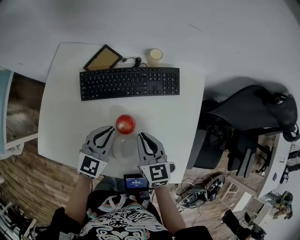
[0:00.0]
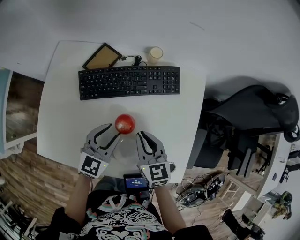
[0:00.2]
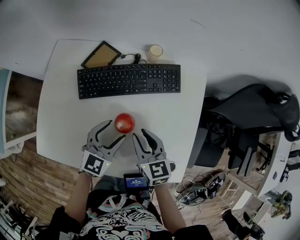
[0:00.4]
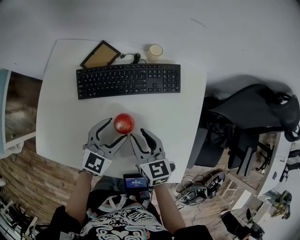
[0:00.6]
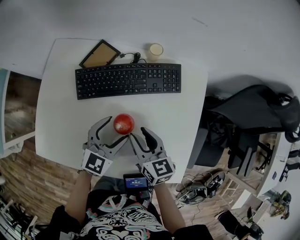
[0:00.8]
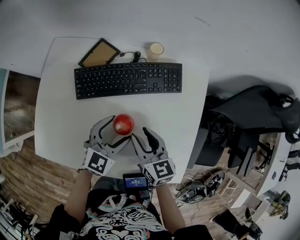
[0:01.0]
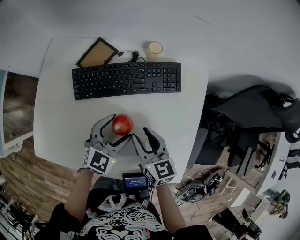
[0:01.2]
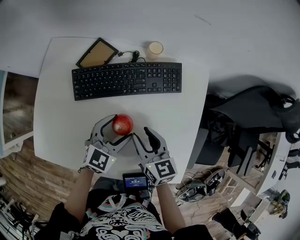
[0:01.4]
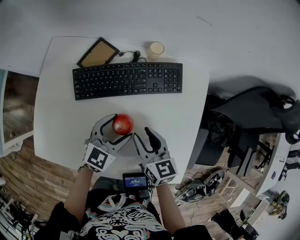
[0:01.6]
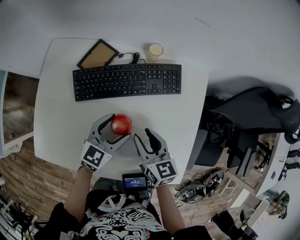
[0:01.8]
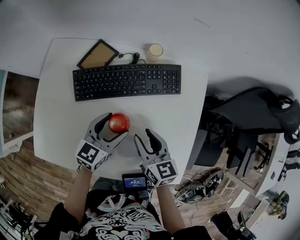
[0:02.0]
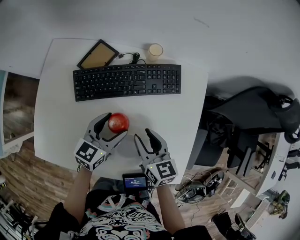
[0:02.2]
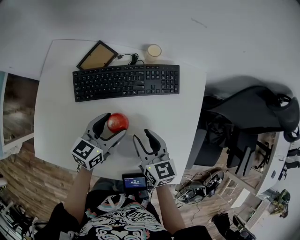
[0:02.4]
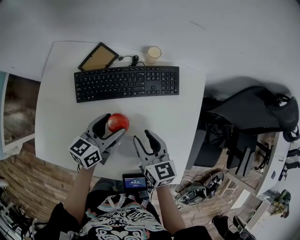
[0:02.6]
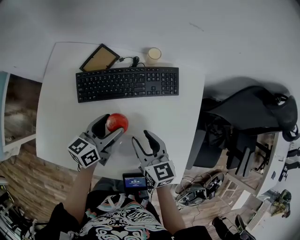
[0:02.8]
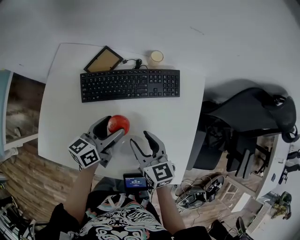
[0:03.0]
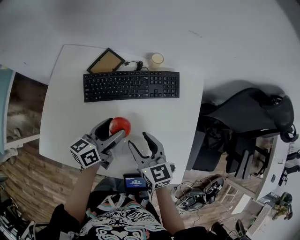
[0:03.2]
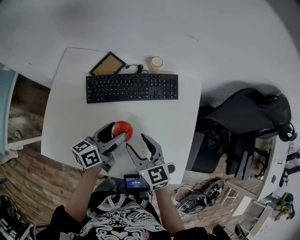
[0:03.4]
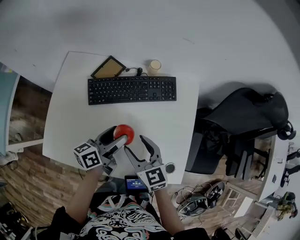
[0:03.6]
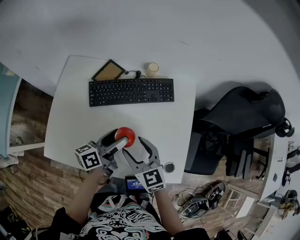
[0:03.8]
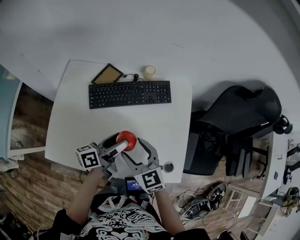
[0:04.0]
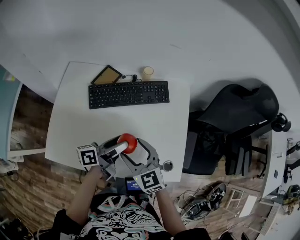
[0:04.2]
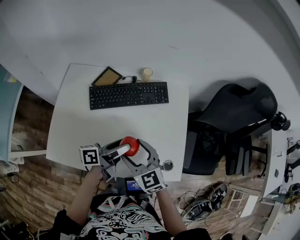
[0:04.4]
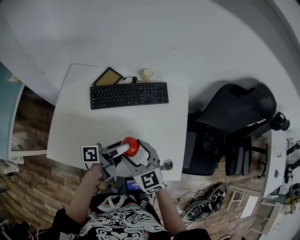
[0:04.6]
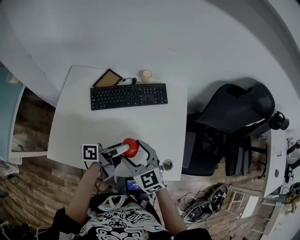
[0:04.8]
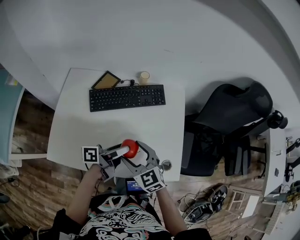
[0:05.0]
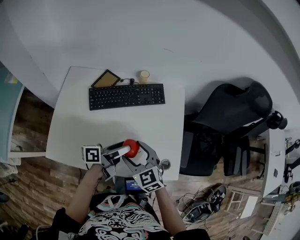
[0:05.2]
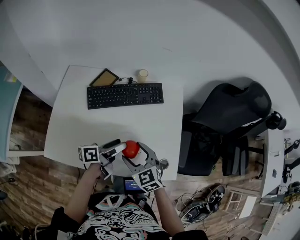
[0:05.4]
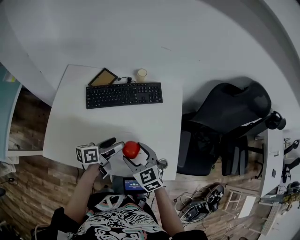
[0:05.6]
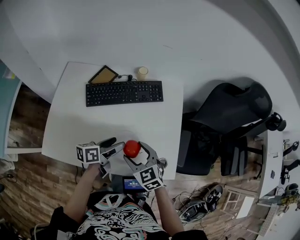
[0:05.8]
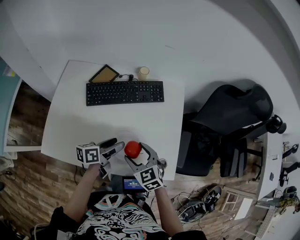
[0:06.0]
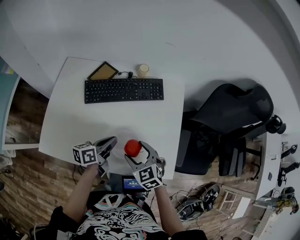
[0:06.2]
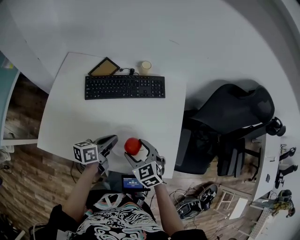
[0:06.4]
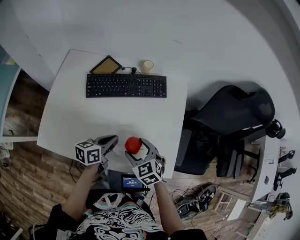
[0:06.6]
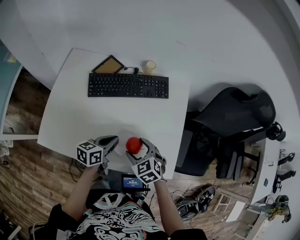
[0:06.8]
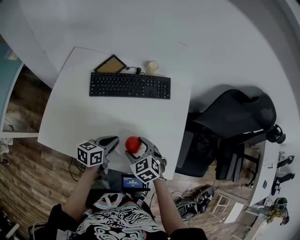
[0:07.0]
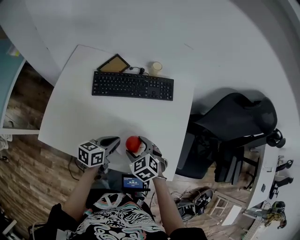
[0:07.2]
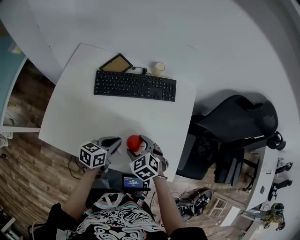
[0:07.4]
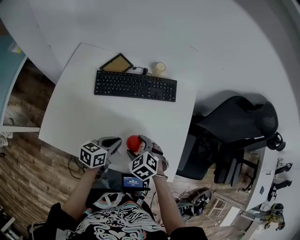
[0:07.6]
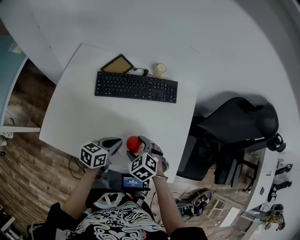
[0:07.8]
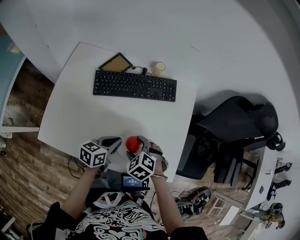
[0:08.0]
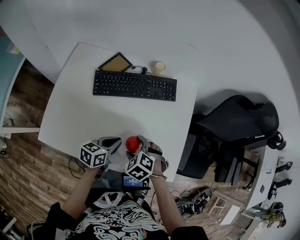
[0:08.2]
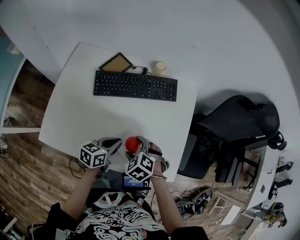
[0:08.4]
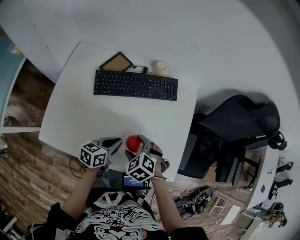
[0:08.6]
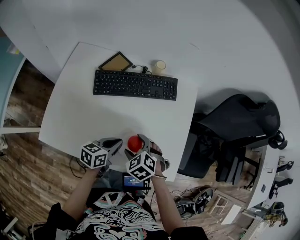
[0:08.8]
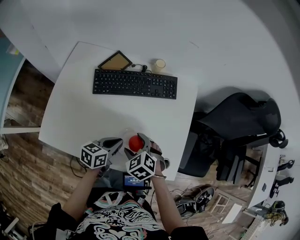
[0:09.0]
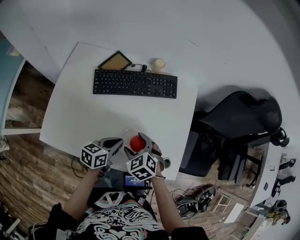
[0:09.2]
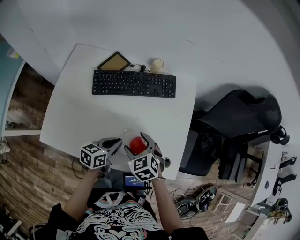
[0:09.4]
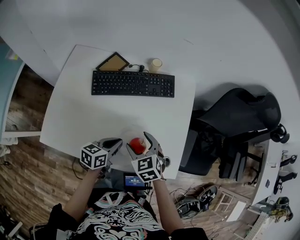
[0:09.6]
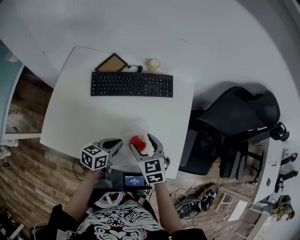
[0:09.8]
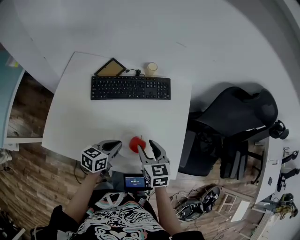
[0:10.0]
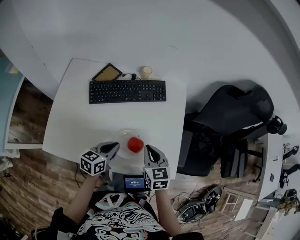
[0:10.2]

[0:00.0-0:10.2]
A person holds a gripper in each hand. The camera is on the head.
0:00.0 to 0:01.4: The left gripper is displaced to the right by roughly 5 cm, and opens up; the right gripper opens.
0:01.4 to 0:03.0: The left gripper travels to the left by approximately 5 cm, and rotates around the line of its fingers by about 40 degrees, counterclockwise from behind.
0:03.0 to 0:04.4: The grippers both shift backward and upward by about 10 cm. The right gripper swivels roughly 20 degrees, while the left gripper turns by some 30 degrees.
0:04.4 to 0:05.8: The right gripper shifts by some 5 cm; the left gripper heads downward, covering approximately 5 cm, and swivels some 20 degrees.
0:05.8 to 0:07.2: The left gripper closes its fingers. The right gripper shifts roughly 5 cm downward, and rotates some 20 degrees.
0:07.2 to 0:08.8: The grippers stay close to where they were, moving slightly.
0:08.8 to 0:10.2: The right gripper goes some 10 cm to the right and upward, swivels some 50 degrees, and closes up.

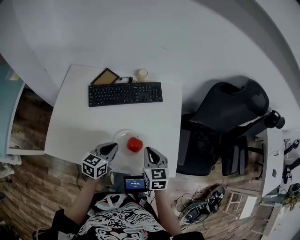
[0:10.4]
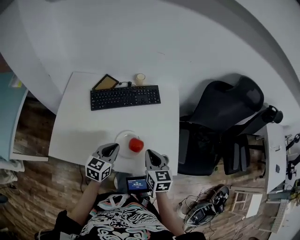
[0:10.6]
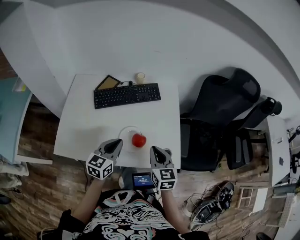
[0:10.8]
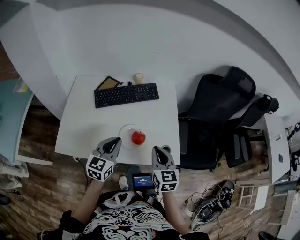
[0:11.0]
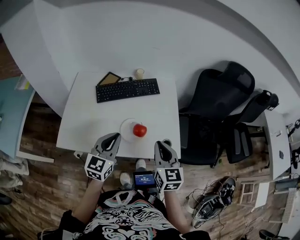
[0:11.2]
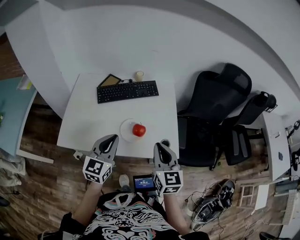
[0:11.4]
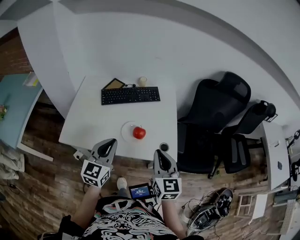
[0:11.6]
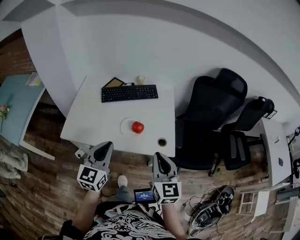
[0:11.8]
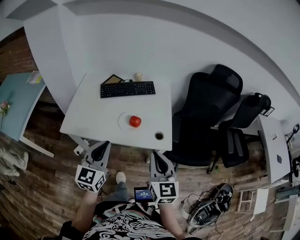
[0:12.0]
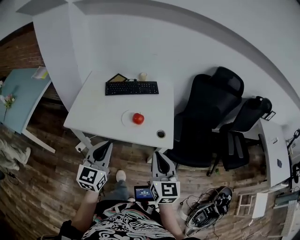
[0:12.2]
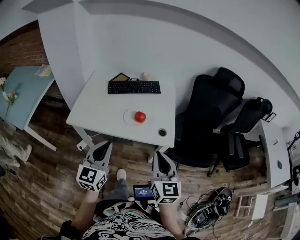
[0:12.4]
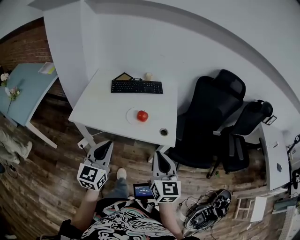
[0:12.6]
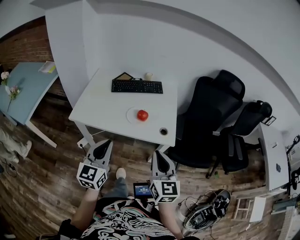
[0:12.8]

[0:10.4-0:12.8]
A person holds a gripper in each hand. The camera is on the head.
0:10.4 to 0:11.6: The left gripper moves upward and backward, some 25 cm, and changes its angle by some 30 degrees, while the right gripper travels backward and upward by about 25 cm, and turns by roughly 20 degrees.
0:11.6 to 0:12.8: Both grippers travel together backward, some 20 cm.

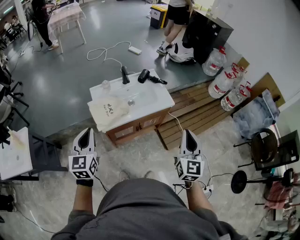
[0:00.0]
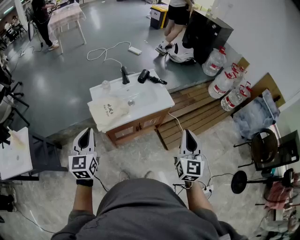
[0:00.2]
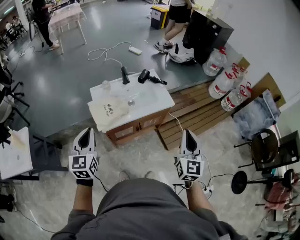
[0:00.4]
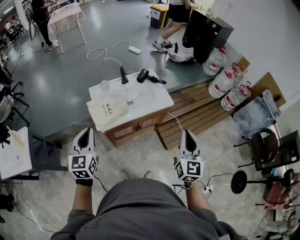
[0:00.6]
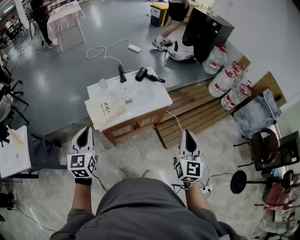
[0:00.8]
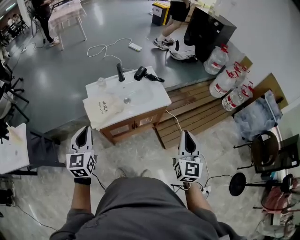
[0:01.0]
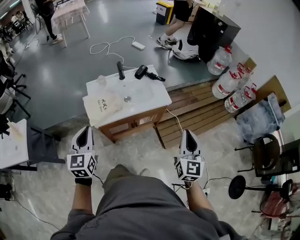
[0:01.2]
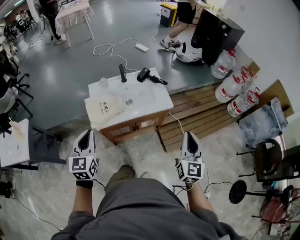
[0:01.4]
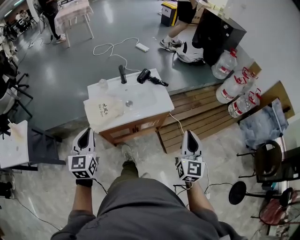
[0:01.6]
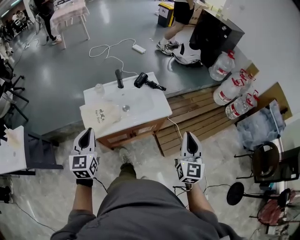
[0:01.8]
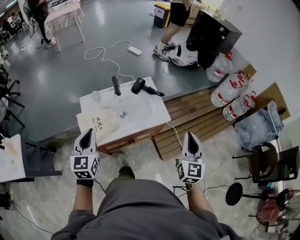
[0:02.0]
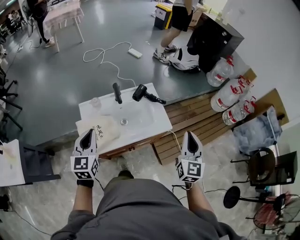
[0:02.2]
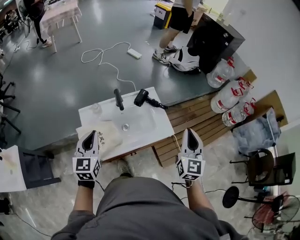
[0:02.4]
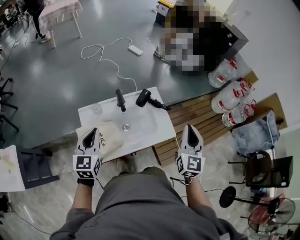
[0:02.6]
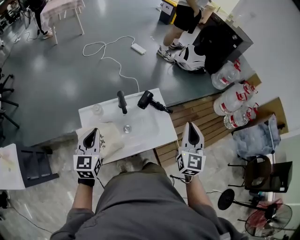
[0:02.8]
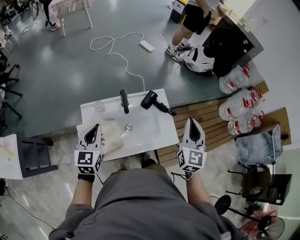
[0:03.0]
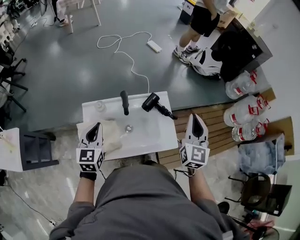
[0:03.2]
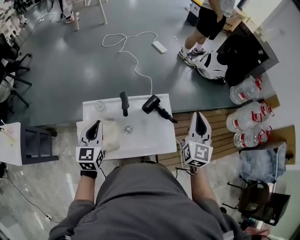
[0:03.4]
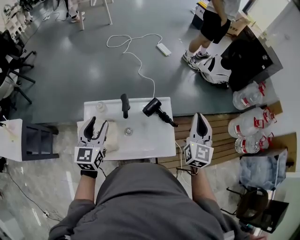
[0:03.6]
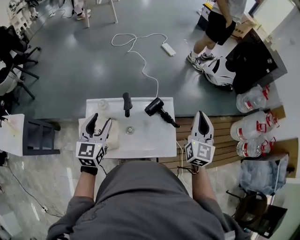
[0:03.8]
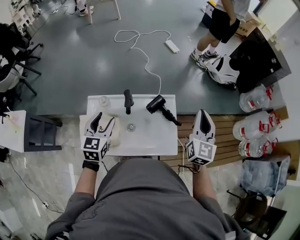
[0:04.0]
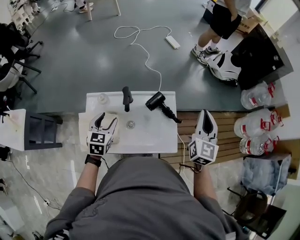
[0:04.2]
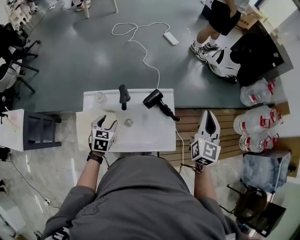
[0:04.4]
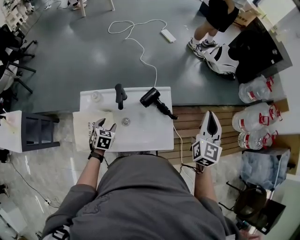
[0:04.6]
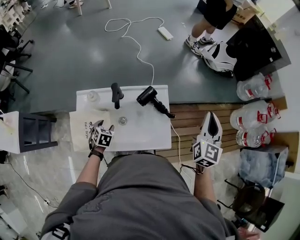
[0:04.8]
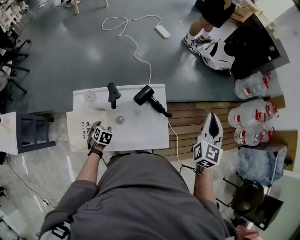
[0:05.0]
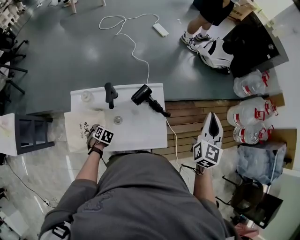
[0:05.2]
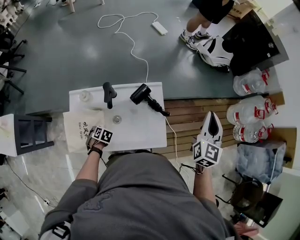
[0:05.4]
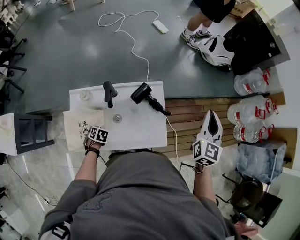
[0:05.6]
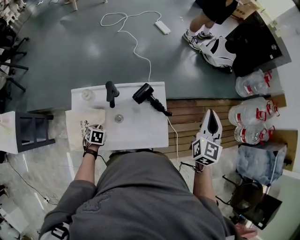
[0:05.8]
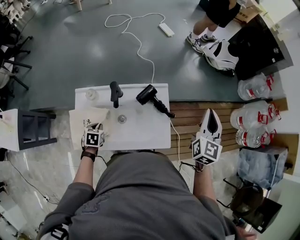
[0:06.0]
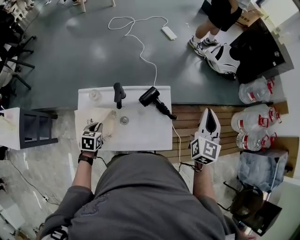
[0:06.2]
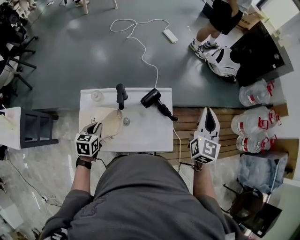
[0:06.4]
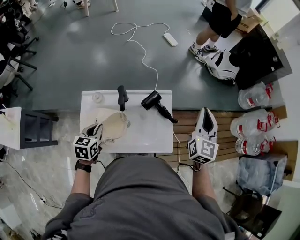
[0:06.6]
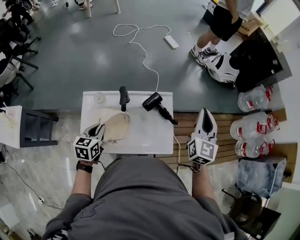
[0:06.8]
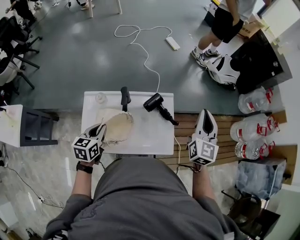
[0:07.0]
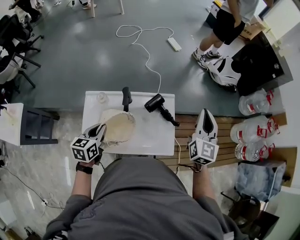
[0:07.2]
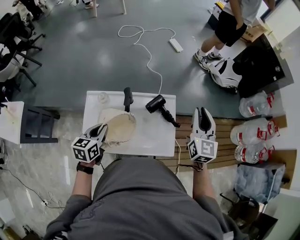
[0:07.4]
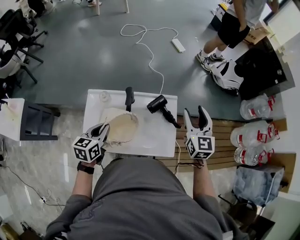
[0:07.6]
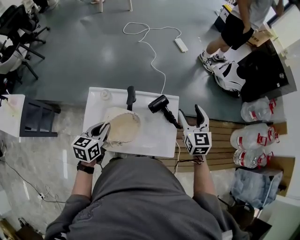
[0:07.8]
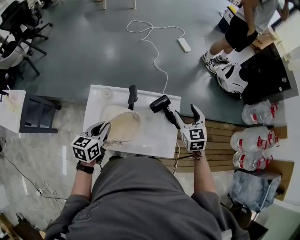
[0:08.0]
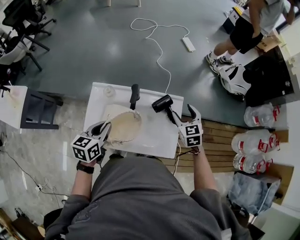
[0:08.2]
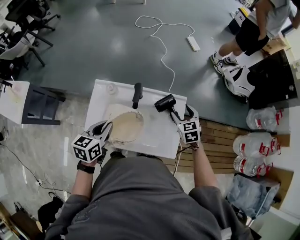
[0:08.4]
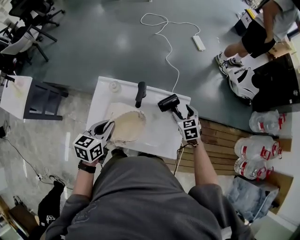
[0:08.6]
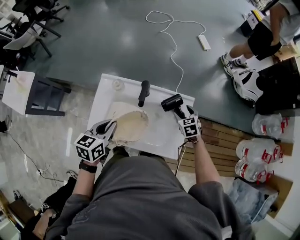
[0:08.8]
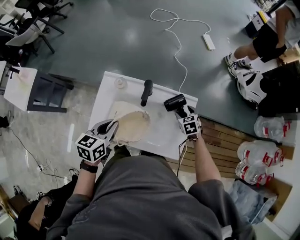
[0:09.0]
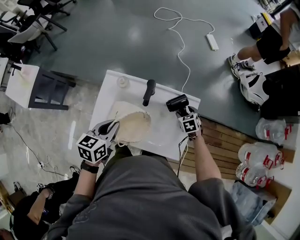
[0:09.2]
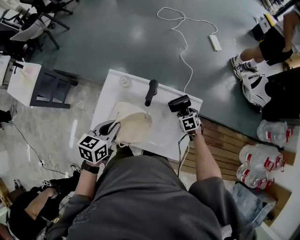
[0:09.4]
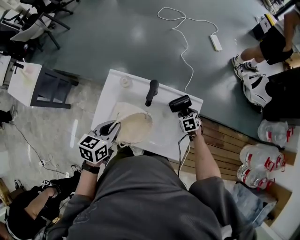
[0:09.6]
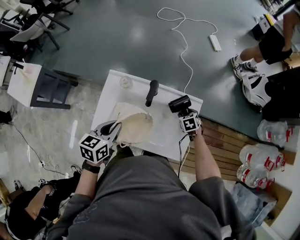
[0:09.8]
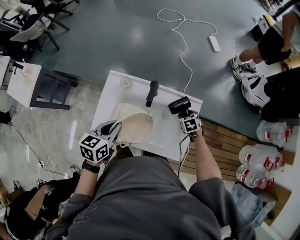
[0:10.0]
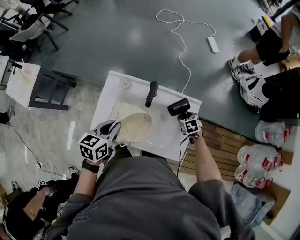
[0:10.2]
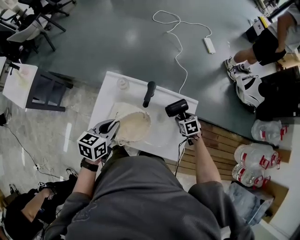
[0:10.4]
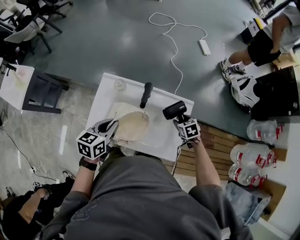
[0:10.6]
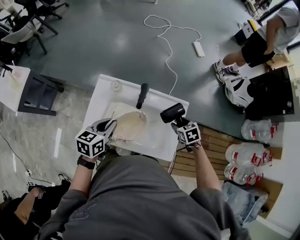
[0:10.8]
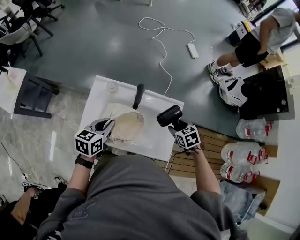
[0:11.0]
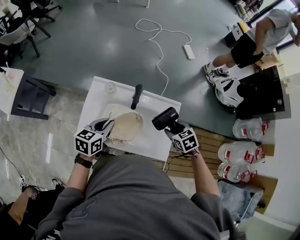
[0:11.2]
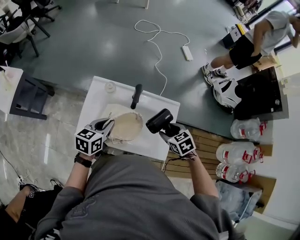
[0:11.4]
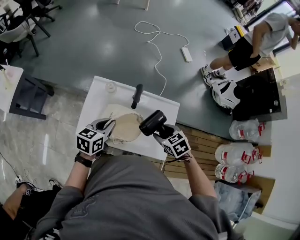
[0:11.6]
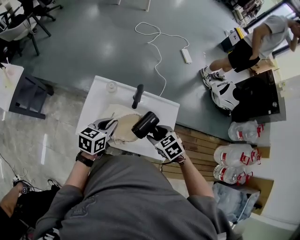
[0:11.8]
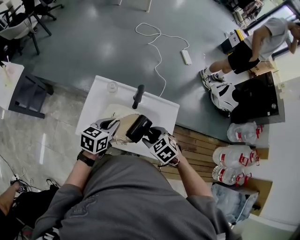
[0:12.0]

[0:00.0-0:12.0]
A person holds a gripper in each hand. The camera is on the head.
0:00.0 to 0:01.6: The left gripper is displaced to the right by about 5 cm. The right gripper moves to the right and forward, some 10 cm.
0:01.6 to 0:03.0: Both grippers move forward, some 30 cm.
0:03.0 to 0:04.4: The left gripper travels downward and to the right by some 15 cm, turns by about 30 degrees, and opens. Meanwhile the right gripper shifts about 15 cm forward and to the right.
0:04.4 to 0:06.0: The left gripper heads downward, covering about 10 cm, swivels roughly 20 degrees, and closes its fingers.
0:06.0 to 0:07.6: The left gripper heads upward, covering roughly 20 cm, and tips its fingers upward by about 30 degrees, while the right gripper heads to the left, covering roughly 15 cm, swivels approximately 20 degrees, and opens its fingers.
0:07.6 to 0:09.0: The right gripper moves downward, about 30 cm, and tilts its fingers approximately 40 degrees downward.
0:09.0 to 0:10.4: The grippers stay close to where they were, moving slightly.
0:10.4 to 0:12.0: The right gripper moves upward, to the left and backward, some 25 cm, and rotates roughly 30 degrees.
